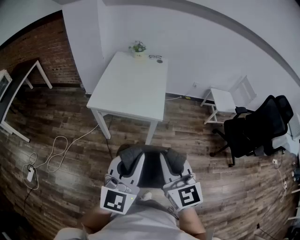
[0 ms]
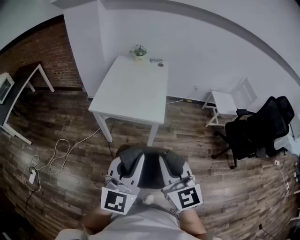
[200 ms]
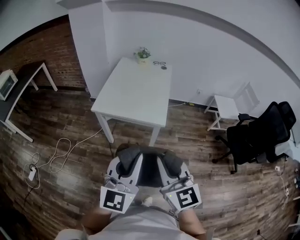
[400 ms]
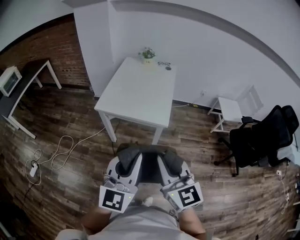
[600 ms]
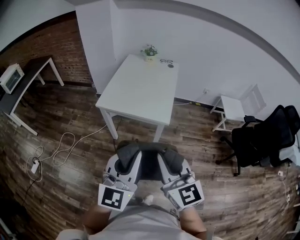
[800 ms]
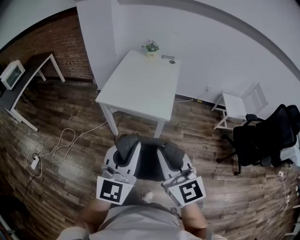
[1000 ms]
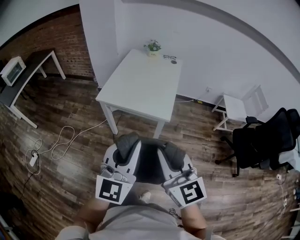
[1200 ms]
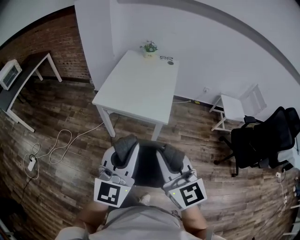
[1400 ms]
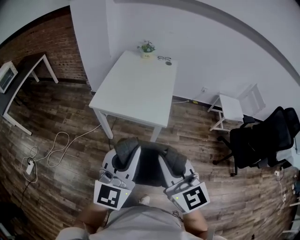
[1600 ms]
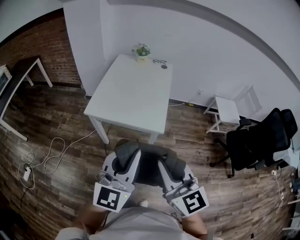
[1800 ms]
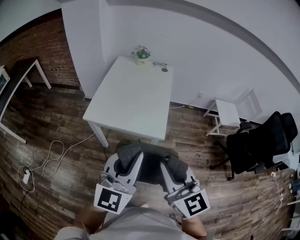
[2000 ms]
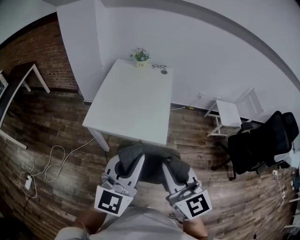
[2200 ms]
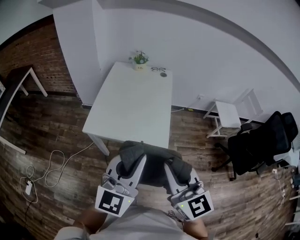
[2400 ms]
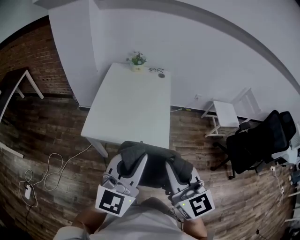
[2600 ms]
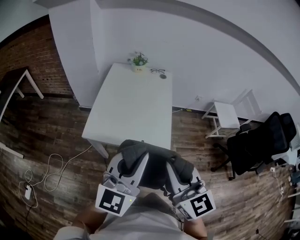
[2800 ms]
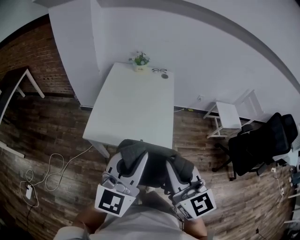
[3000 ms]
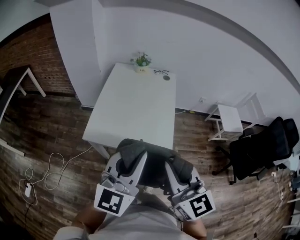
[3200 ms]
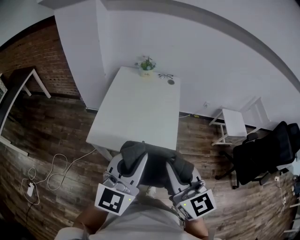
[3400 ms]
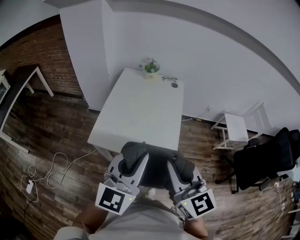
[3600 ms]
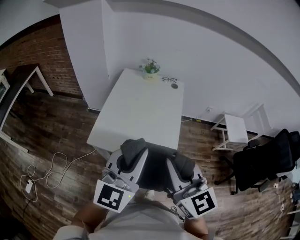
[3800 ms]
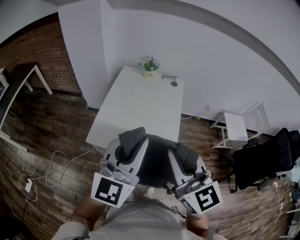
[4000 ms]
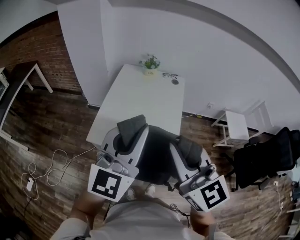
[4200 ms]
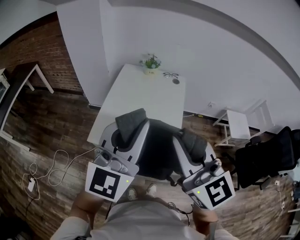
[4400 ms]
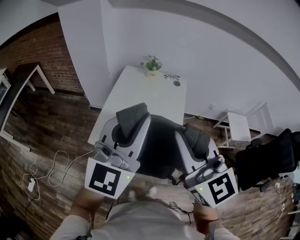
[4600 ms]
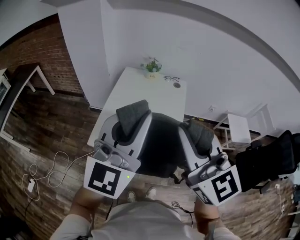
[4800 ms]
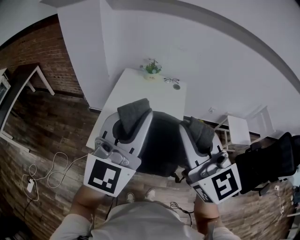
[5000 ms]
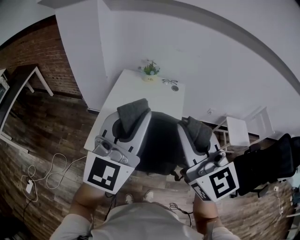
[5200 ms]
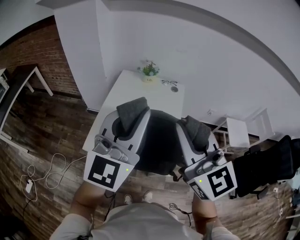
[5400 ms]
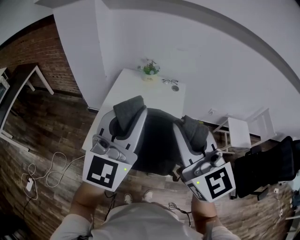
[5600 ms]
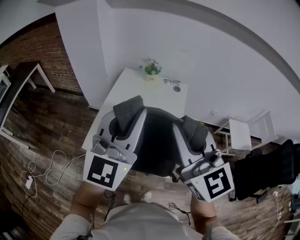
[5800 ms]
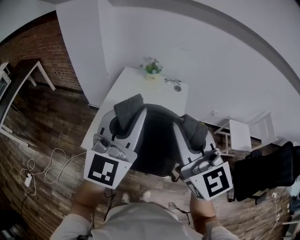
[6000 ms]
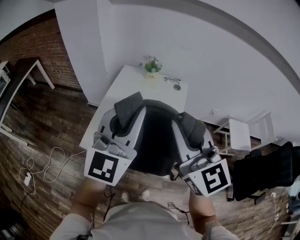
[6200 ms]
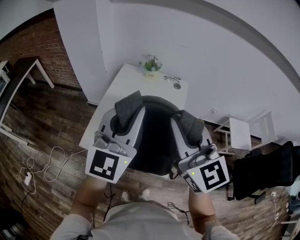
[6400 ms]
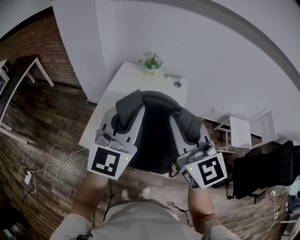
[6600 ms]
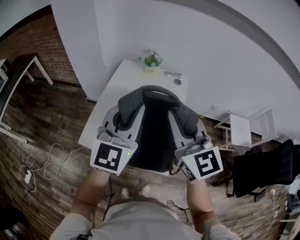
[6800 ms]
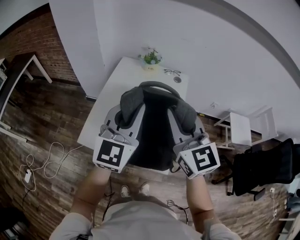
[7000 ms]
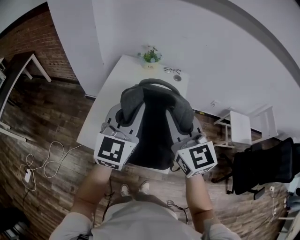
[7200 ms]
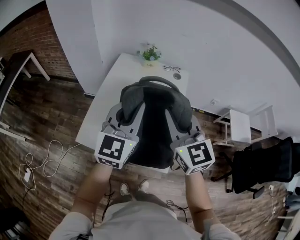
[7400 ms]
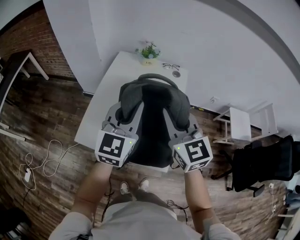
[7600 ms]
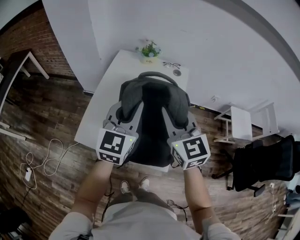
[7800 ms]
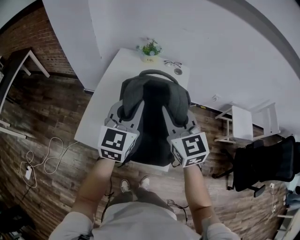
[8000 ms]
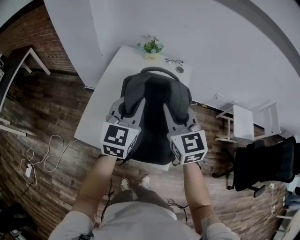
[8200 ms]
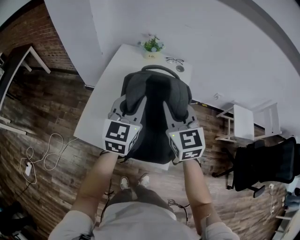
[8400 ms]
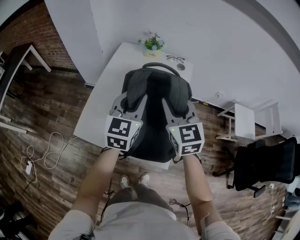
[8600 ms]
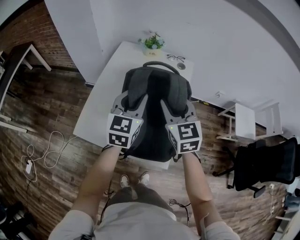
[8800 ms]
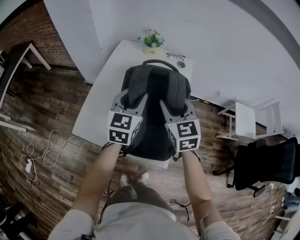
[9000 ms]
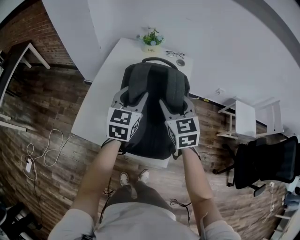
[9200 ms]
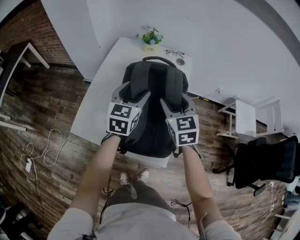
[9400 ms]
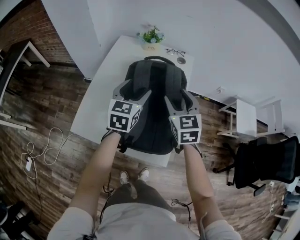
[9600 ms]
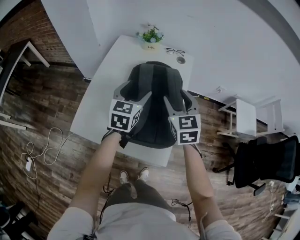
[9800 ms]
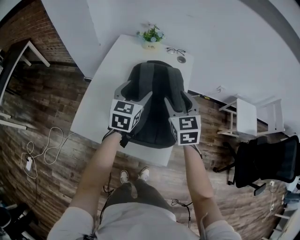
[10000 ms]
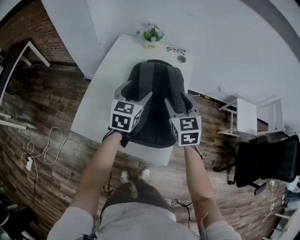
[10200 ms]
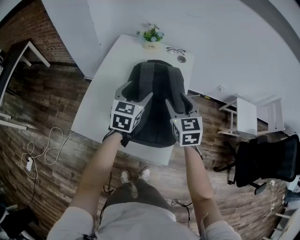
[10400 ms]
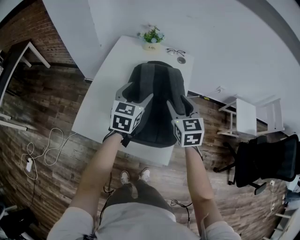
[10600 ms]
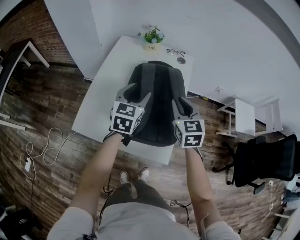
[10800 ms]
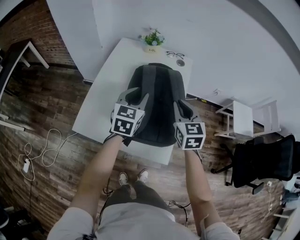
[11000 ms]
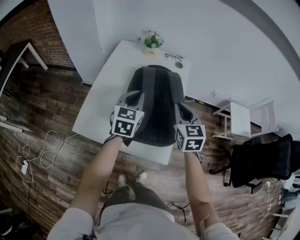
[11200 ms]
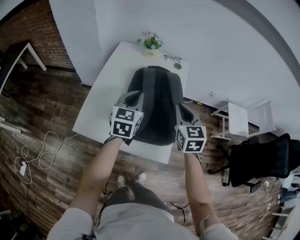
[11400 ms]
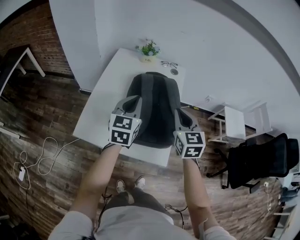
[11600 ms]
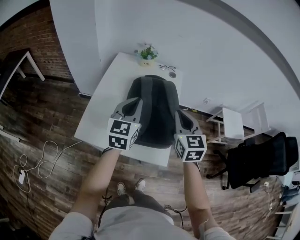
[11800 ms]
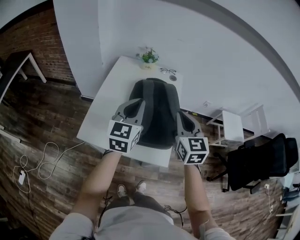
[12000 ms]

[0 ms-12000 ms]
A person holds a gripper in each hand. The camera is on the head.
0 ms to 1600 ms: The left gripper heads forward, covering about 5 cm.
1600 ms to 3000 ms: The two grippers go roughly 25 cm forward.
3000 ms to 4400 ms: Both grippers move forward and upward, roughly 15 cm.
4400 ms to 6000 ms: The two grippers go approximately 15 cm forward.
6000 ms to 7600 ms: Both grippers travel together downward and forward, roughly 20 cm.
7600 ms to 9000 ms: The two grippers go about 15 cm downward and forward. The right gripper opens.
9000 ms to 10400 ms: Both grippers travel together downward, approximately 5 cm. The left gripper opens up.
10400 ms to 12000 ms: The left gripper travels upward and backward by approximately 20 cm, and closes its fingers. The right gripper travels backward and upward by approximately 20 cm, and closes up.

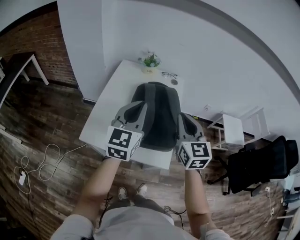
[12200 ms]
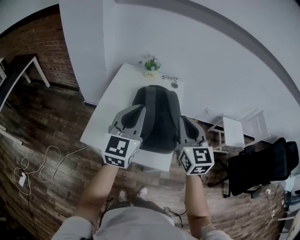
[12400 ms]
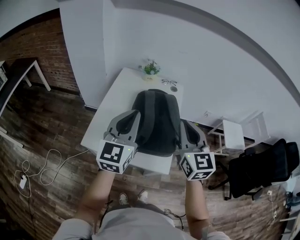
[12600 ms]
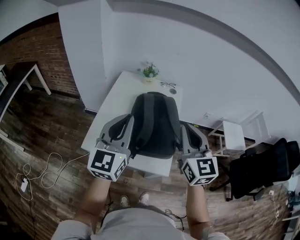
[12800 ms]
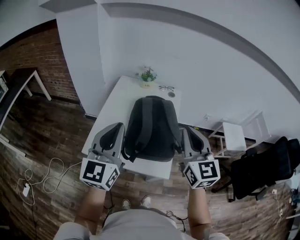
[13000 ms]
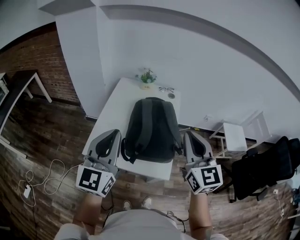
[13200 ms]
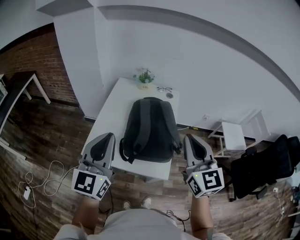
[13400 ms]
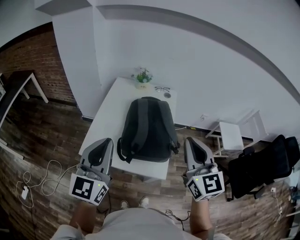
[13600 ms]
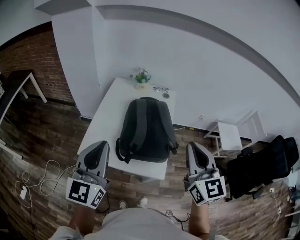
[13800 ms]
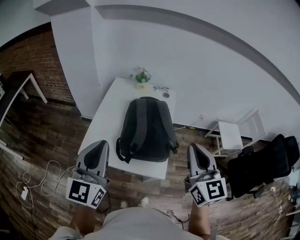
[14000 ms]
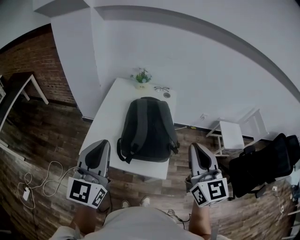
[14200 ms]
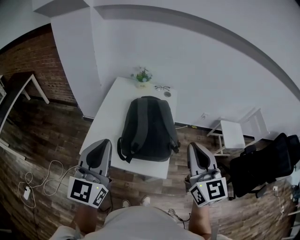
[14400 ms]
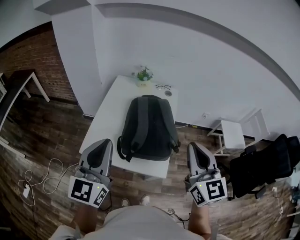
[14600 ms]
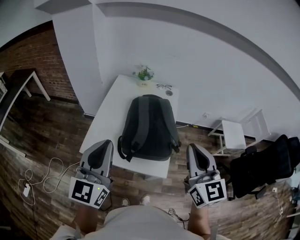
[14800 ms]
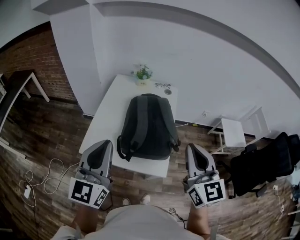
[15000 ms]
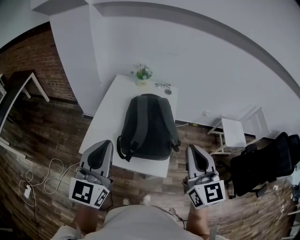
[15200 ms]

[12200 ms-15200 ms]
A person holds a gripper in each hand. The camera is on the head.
12200 ms to 13800 ms: The left gripper is displaced backward, upward and to the left by roughly 15 cm; the right gripper travels backward, upward and to the right by approximately 15 cm.
13800 ms to 15200 ms: There are only small adjustments of the grippers.

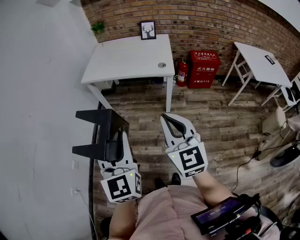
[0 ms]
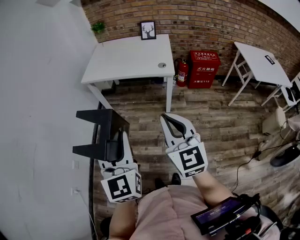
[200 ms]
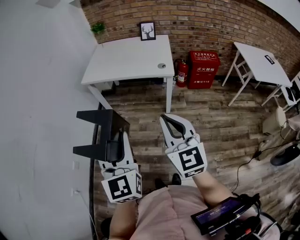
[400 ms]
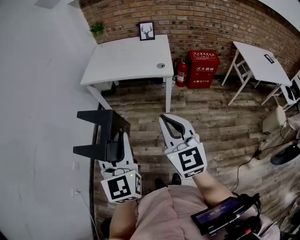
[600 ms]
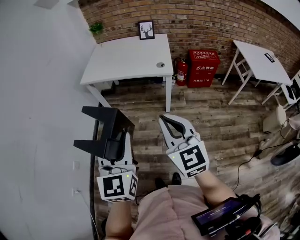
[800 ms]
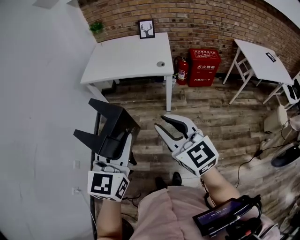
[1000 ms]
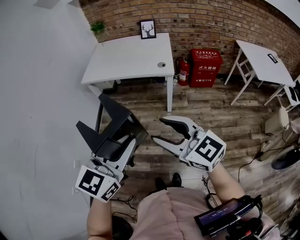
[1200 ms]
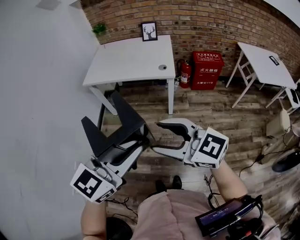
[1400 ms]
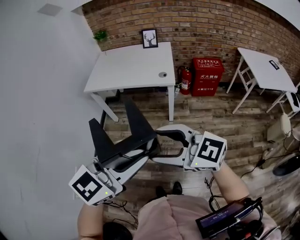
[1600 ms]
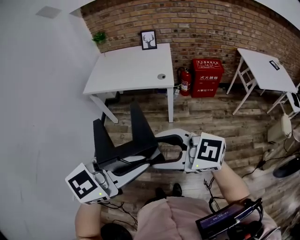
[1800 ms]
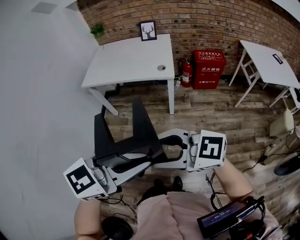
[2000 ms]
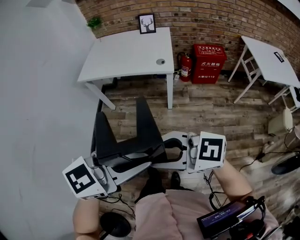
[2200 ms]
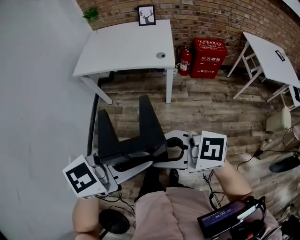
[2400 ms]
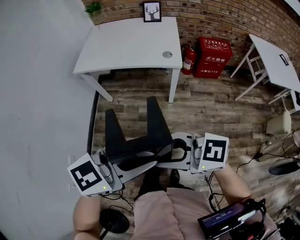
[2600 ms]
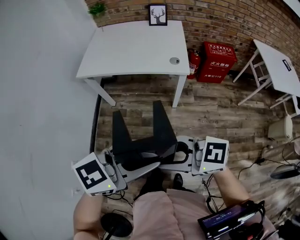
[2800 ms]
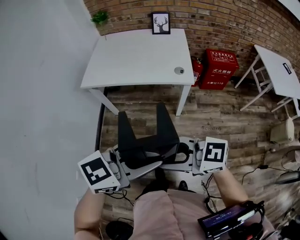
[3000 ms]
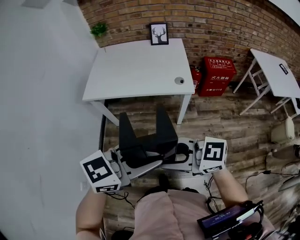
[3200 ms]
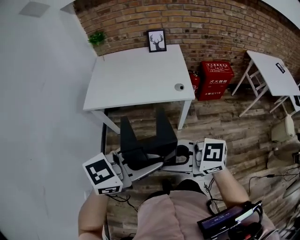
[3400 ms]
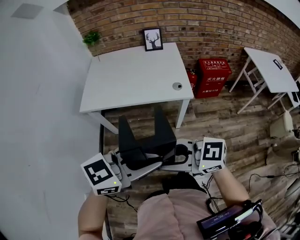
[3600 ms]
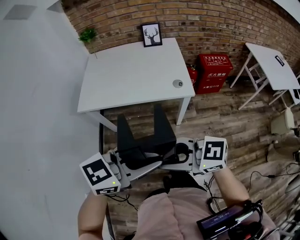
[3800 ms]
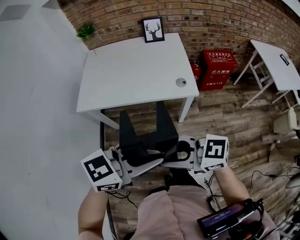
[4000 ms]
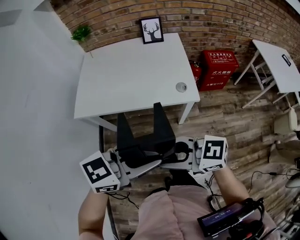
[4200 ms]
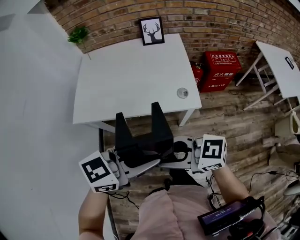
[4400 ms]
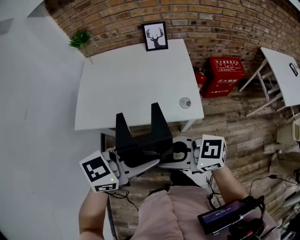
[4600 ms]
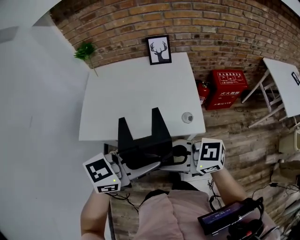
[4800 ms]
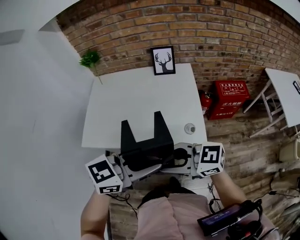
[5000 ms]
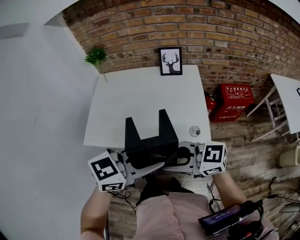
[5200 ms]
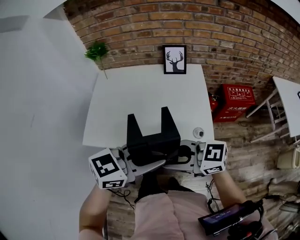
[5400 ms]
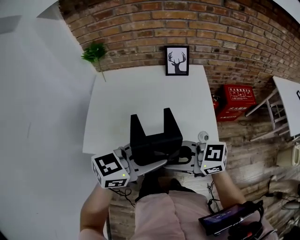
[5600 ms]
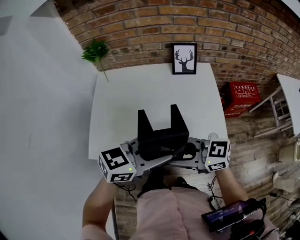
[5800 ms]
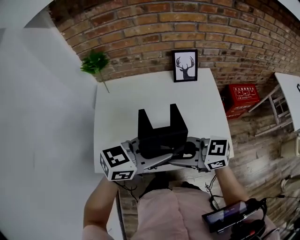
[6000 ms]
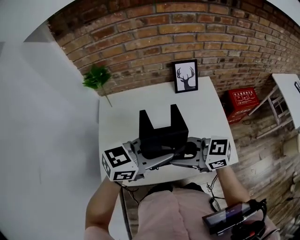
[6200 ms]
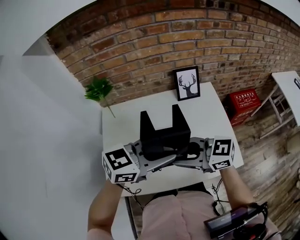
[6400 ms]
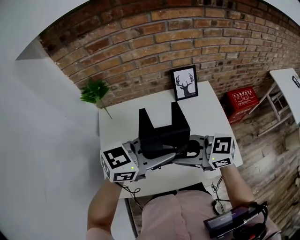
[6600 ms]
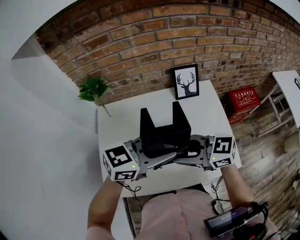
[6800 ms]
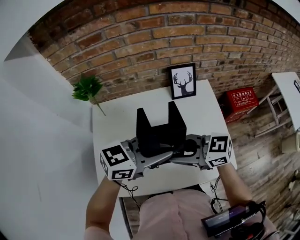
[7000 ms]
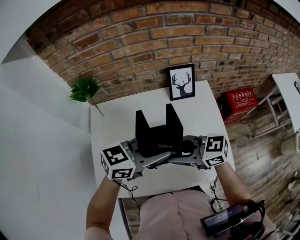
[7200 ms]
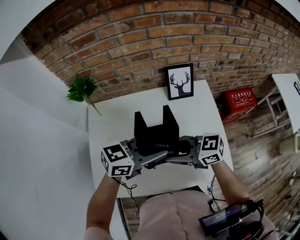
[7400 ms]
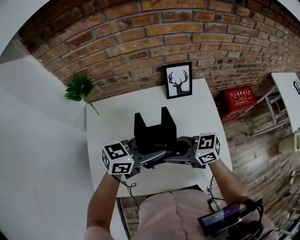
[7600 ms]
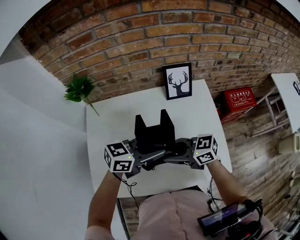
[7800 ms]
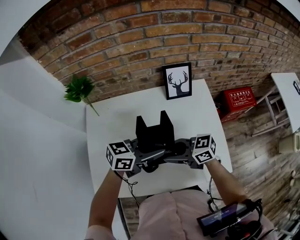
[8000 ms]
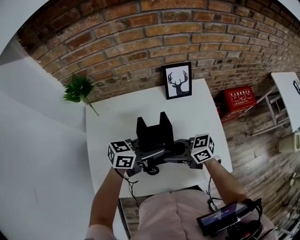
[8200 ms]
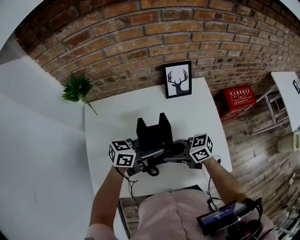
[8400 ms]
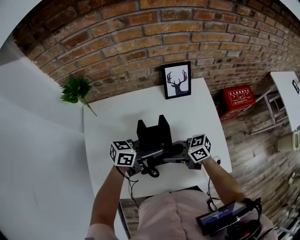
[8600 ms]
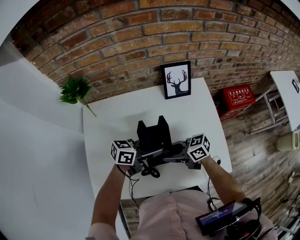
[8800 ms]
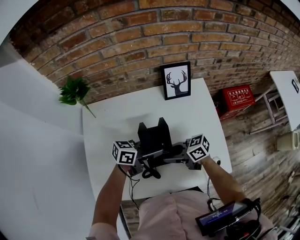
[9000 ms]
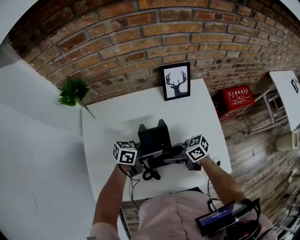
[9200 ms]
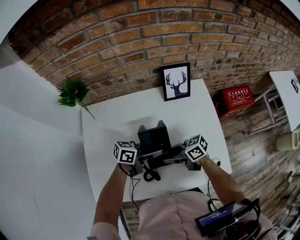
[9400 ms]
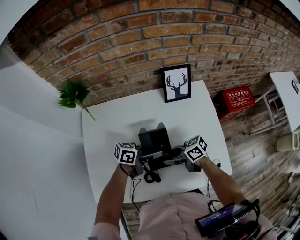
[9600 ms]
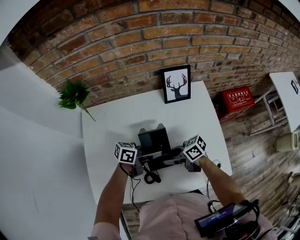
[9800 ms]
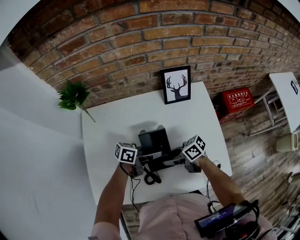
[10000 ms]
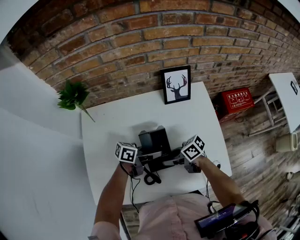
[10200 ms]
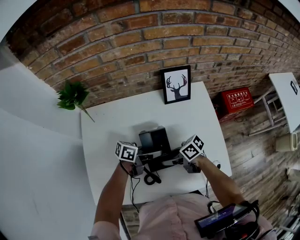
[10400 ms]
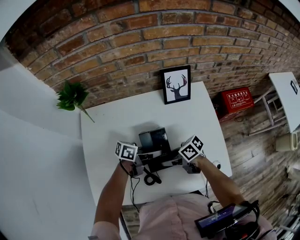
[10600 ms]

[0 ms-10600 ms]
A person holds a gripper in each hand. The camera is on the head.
0 ms to 1600 ms: The left gripper heads to the right and backward, covering approximately 15 cm, and turns by some 60 degrees. The right gripper ends up some 5 cm from where it was, turns by about 50 degrees, and opens up.
1600 ms to 3000 ms: The left gripper ends up roughly 20 cm from where it was, and turns by about 20 degrees, while the right gripper changes place by about 15 cm, and closes up.
3000 ms to 4600 ms: The right gripper changes place by roughly 25 cm; the left gripper moves some 25 cm.
4600 ms to 6000 ms: The left gripper ends up approximately 25 cm from where it was. Meanwhile the right gripper shifts by some 30 cm.
6000 ms to 7600 ms: The right gripper changes place by some 15 cm. The left gripper shifts by some 15 cm.
7600 ms to 9000 ms: The grippers both shift downward by approximately 10 cm. The left gripper turns by some 20 degrees.
9000 ms to 10600 ms: The right gripper turns by roughly 20 degrees. Meanwhile the left gripper goes roughly 5 cm downward, and swivels about 20 degrees.
